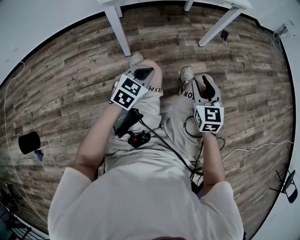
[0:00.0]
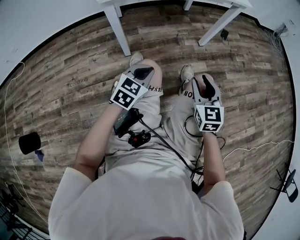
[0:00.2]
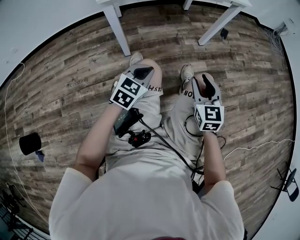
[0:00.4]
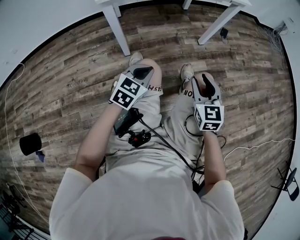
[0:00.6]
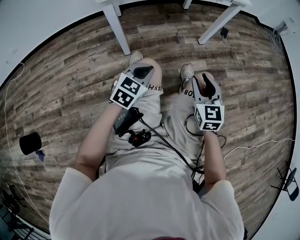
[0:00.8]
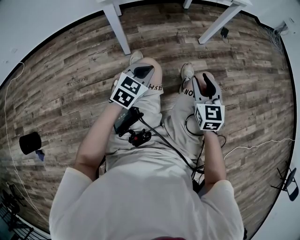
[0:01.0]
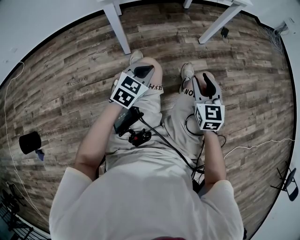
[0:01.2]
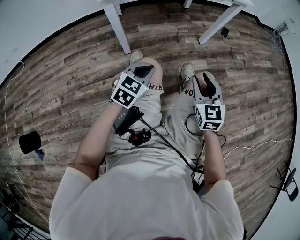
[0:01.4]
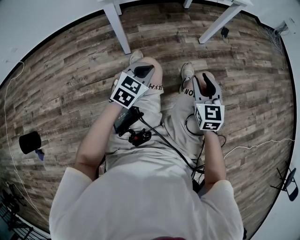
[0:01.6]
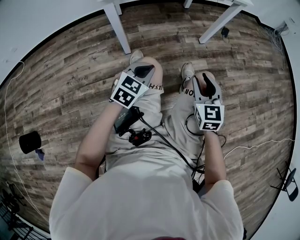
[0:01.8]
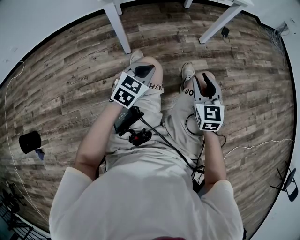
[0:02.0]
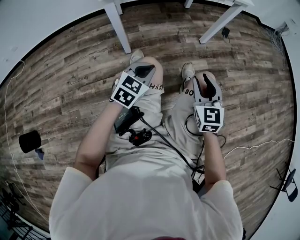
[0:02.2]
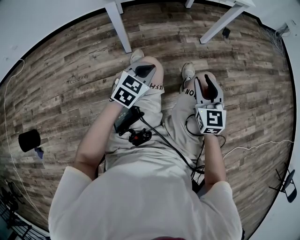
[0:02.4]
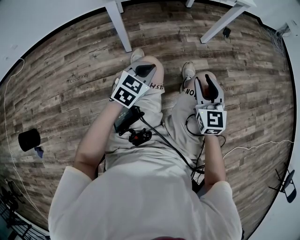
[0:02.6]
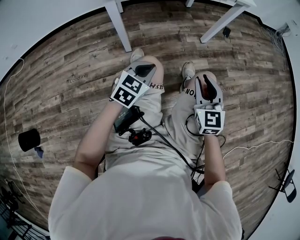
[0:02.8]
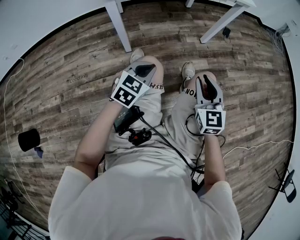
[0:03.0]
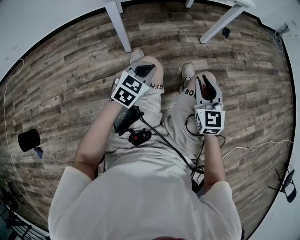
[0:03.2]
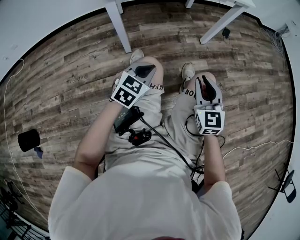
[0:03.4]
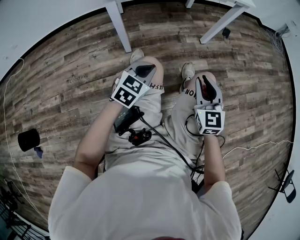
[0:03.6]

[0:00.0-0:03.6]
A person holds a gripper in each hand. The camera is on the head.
0:00.0 to 0:01.8: The two grippers keep their place.
0:01.8 to 0:03.6: The grippers move only a little.

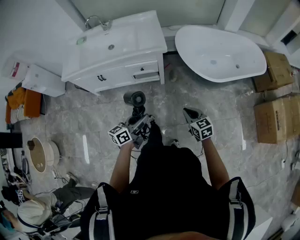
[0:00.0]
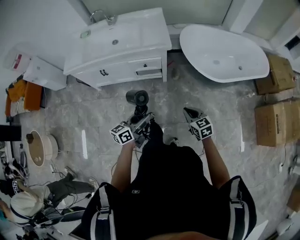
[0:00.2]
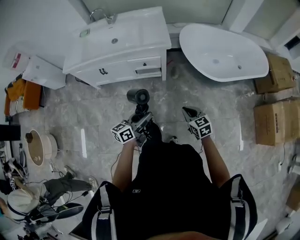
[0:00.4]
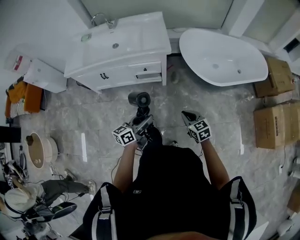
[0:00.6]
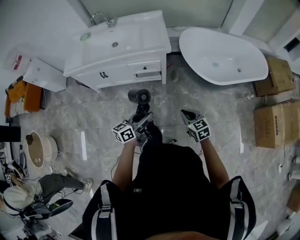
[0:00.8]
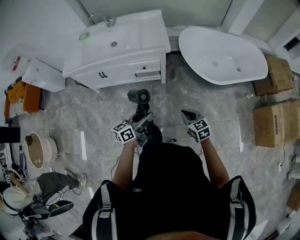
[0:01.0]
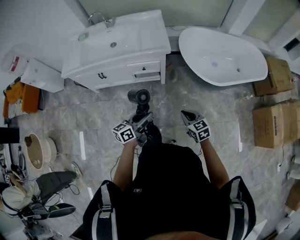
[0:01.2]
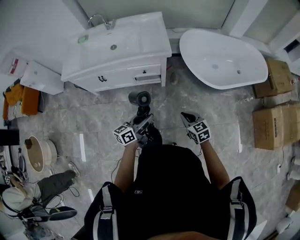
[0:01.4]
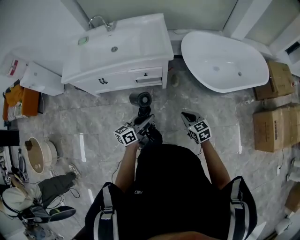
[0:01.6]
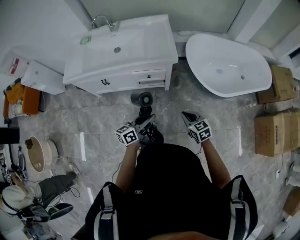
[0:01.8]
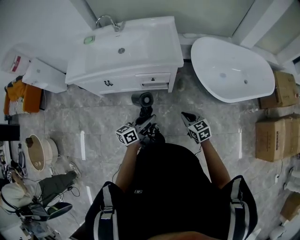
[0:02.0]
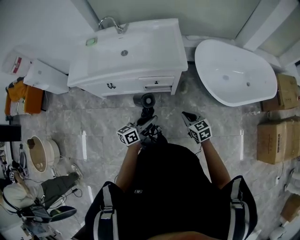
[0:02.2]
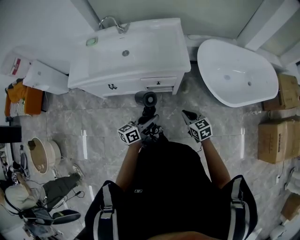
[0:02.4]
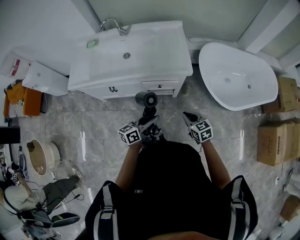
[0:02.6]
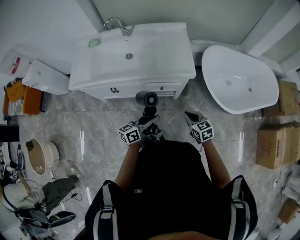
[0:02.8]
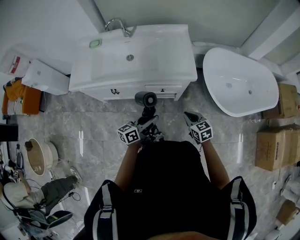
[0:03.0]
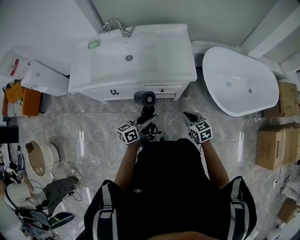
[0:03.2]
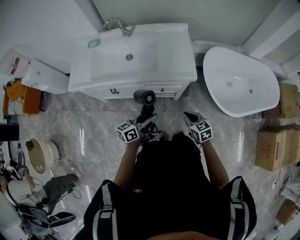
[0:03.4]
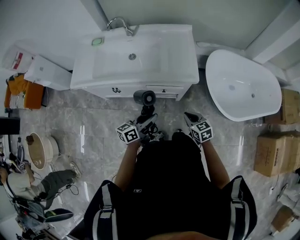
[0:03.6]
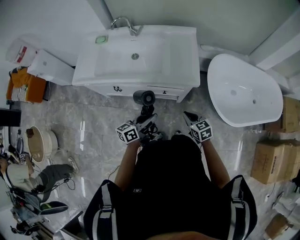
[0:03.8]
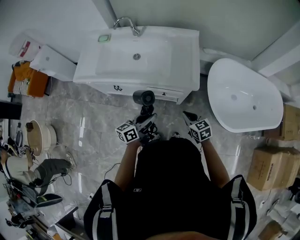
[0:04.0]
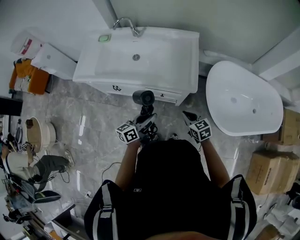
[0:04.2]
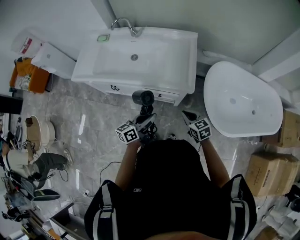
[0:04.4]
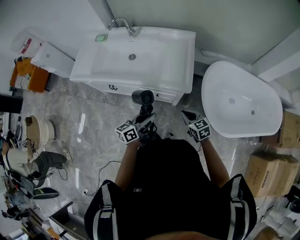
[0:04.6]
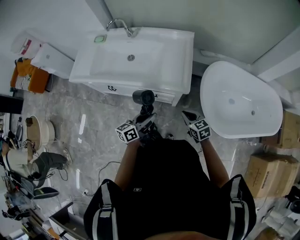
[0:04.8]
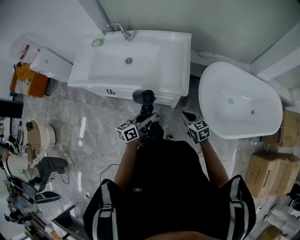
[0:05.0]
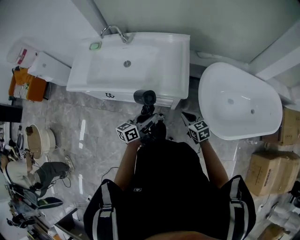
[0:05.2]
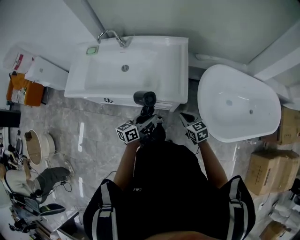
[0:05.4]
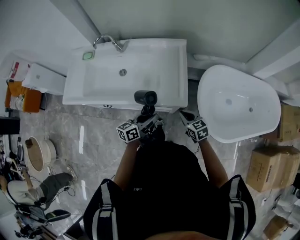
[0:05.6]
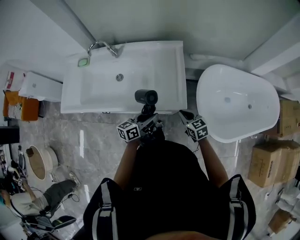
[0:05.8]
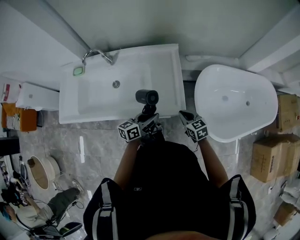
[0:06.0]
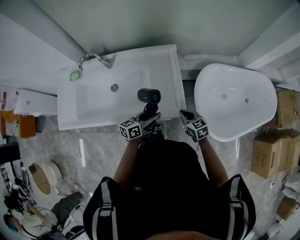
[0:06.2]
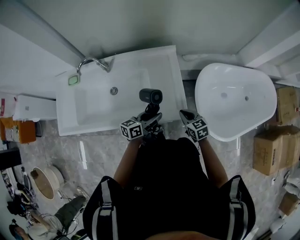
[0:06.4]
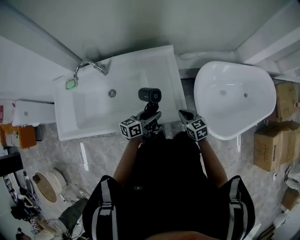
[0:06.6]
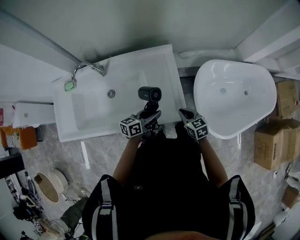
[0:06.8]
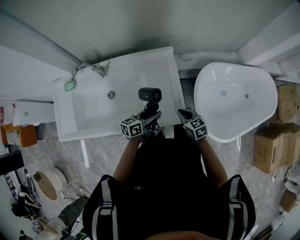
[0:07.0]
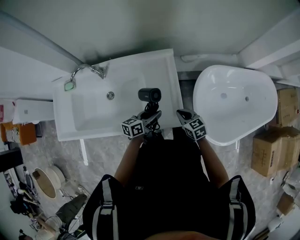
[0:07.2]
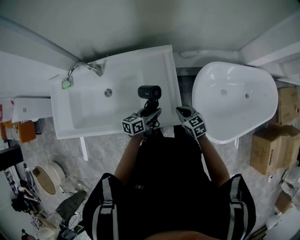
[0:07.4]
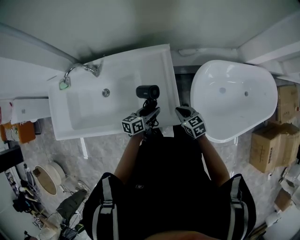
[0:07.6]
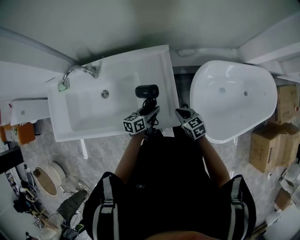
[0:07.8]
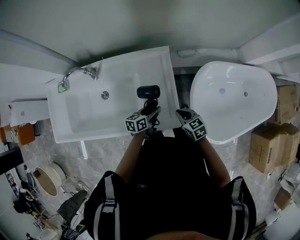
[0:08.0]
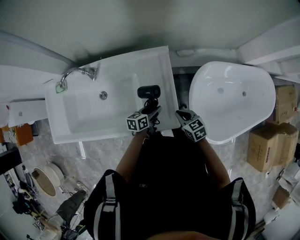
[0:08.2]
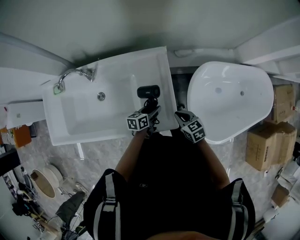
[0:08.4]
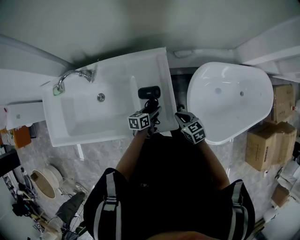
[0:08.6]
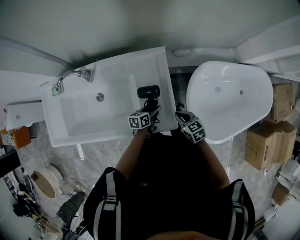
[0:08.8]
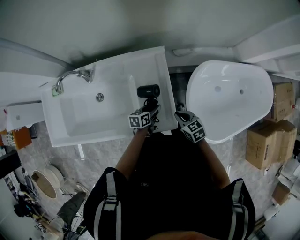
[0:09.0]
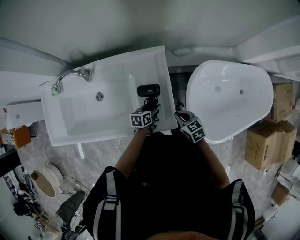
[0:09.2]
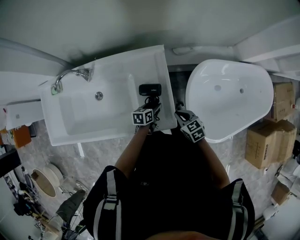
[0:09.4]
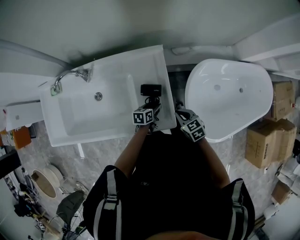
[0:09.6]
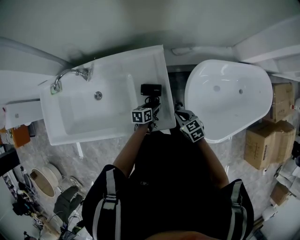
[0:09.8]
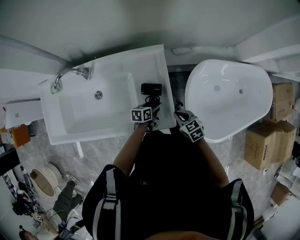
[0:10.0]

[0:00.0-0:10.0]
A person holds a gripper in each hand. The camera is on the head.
0:00.0 to 0:01.4: The grippers make only small movements.
0:01.4 to 0:02.8: The grippers both shift forward and to the left by some 20 cm.
0:02.8 to 0:04.2: The grippers both shift forward by approximately 10 cm.
0:04.2 to 0:05.8: The right gripper goes roughly 15 cm forward, while the left gripper is displaced forward and to the right by approximately 15 cm.
0:05.8 to 0:07.2: Both grippers travel together forward, roughly 10 cm.
0:07.2 to 0:08.6: The left gripper shifts approximately 10 cm downward.
0:08.6 to 0:10.0: The grippers move only a little.

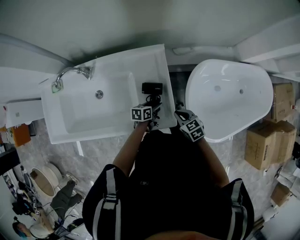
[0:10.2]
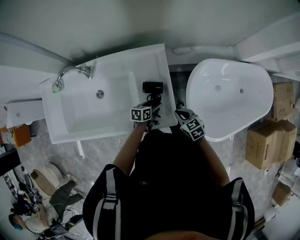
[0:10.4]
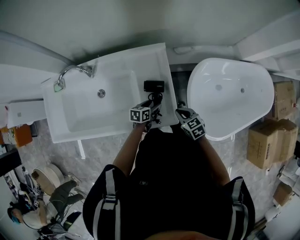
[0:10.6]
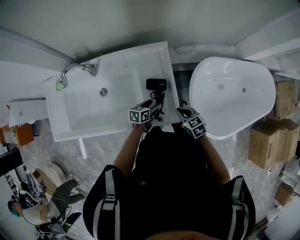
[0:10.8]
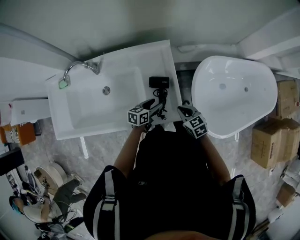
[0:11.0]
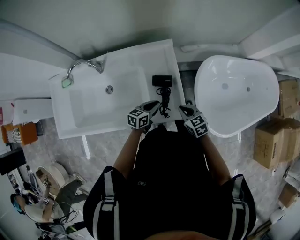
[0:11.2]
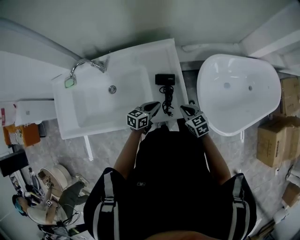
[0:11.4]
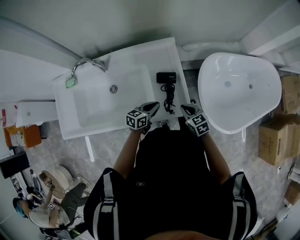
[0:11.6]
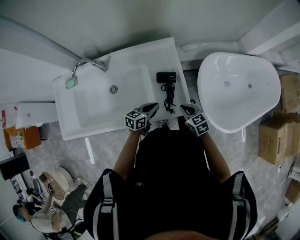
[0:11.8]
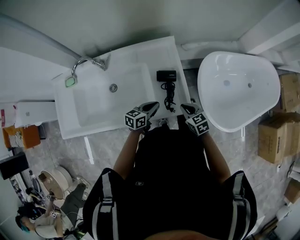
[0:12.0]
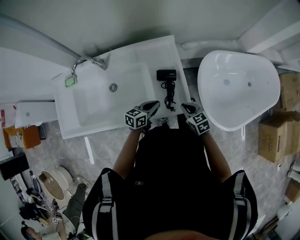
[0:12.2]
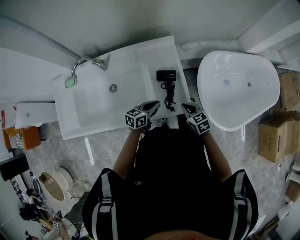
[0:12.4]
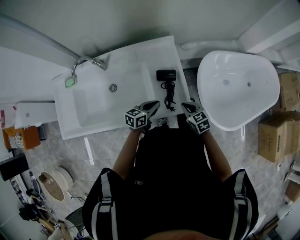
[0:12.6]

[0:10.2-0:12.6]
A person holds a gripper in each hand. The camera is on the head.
0:10.2 to 0:11.4: The left gripper is displaced upward, to the left and backward by some 10 cm, swivels approximately 20 degrees, and closes its fingers. Meanwhile the right gripper ends up some 5 cm from where it was.
0:11.4 to 0:12.6: The grippers make only small movements.

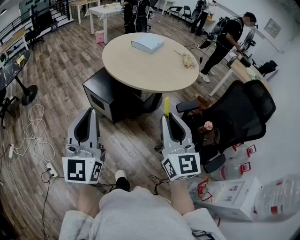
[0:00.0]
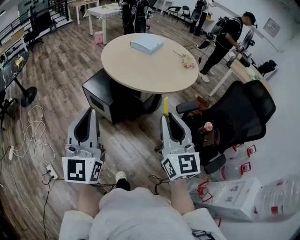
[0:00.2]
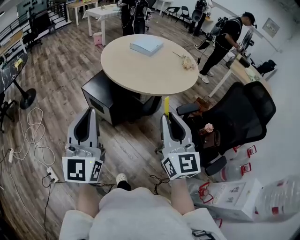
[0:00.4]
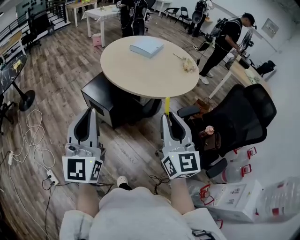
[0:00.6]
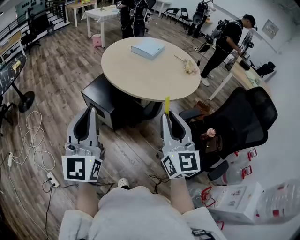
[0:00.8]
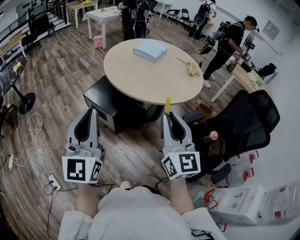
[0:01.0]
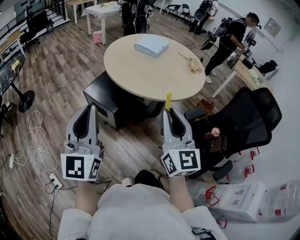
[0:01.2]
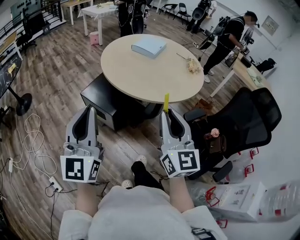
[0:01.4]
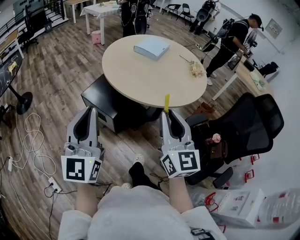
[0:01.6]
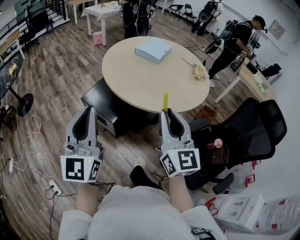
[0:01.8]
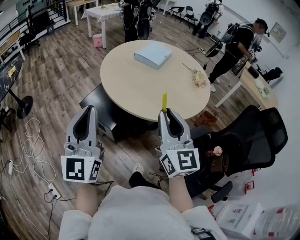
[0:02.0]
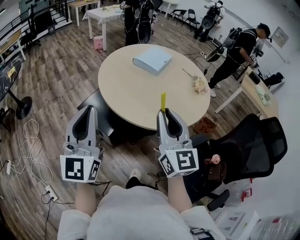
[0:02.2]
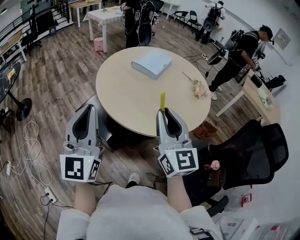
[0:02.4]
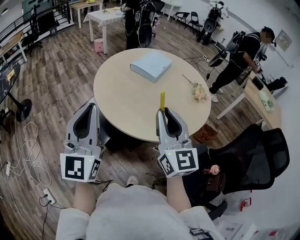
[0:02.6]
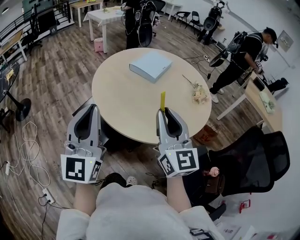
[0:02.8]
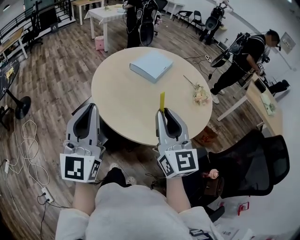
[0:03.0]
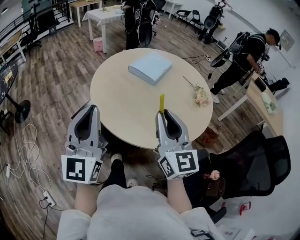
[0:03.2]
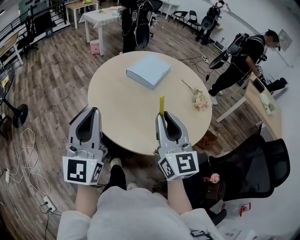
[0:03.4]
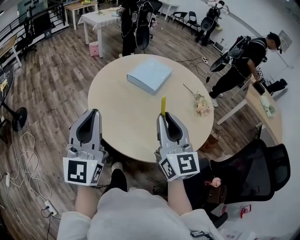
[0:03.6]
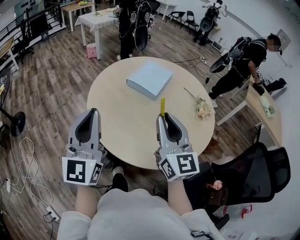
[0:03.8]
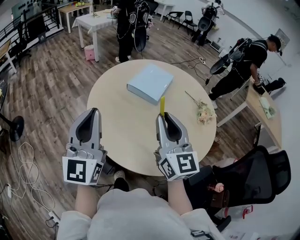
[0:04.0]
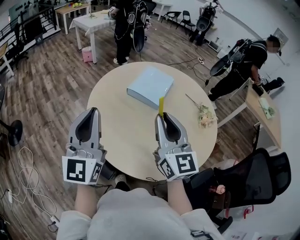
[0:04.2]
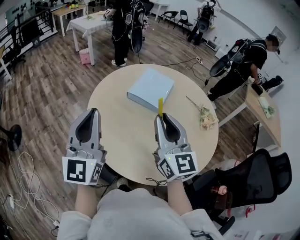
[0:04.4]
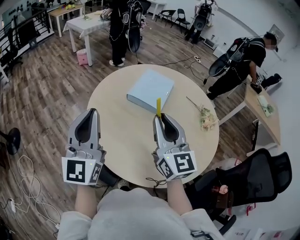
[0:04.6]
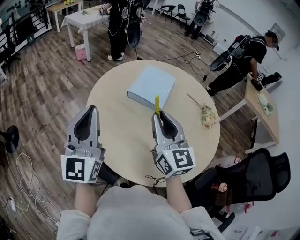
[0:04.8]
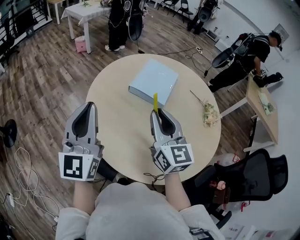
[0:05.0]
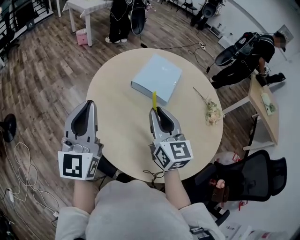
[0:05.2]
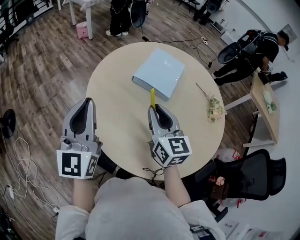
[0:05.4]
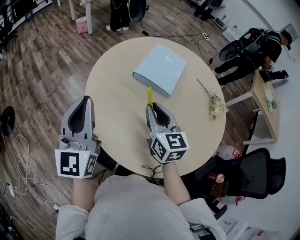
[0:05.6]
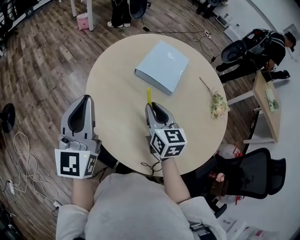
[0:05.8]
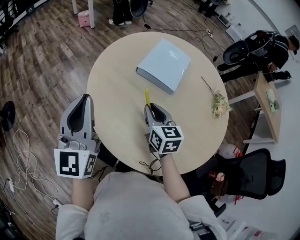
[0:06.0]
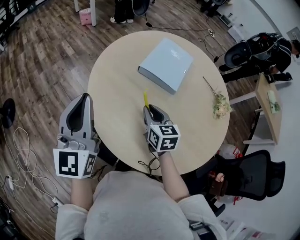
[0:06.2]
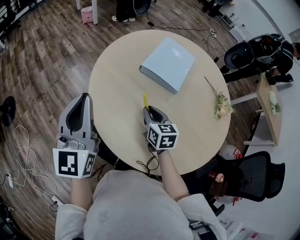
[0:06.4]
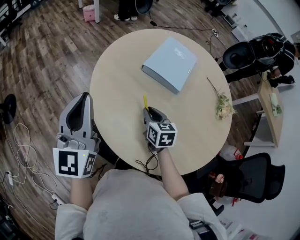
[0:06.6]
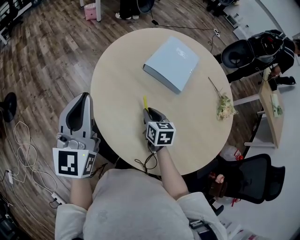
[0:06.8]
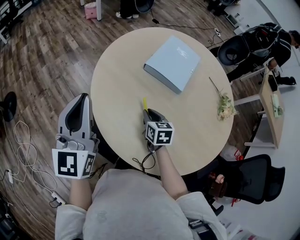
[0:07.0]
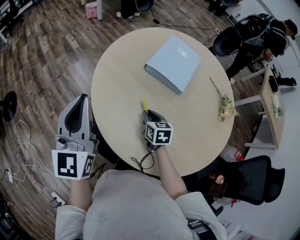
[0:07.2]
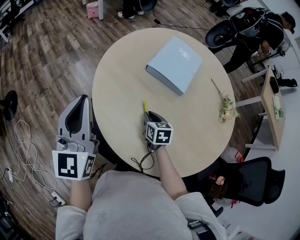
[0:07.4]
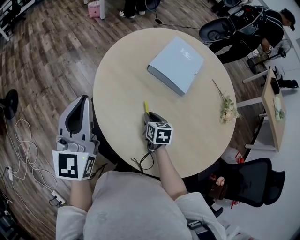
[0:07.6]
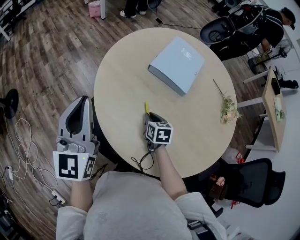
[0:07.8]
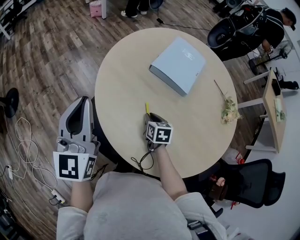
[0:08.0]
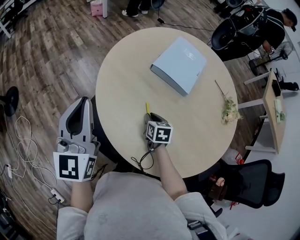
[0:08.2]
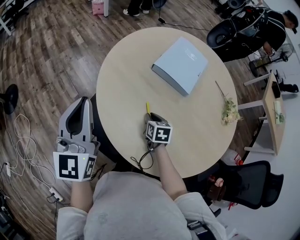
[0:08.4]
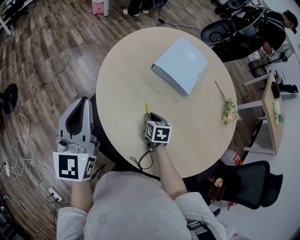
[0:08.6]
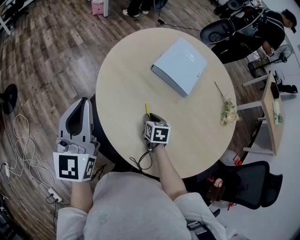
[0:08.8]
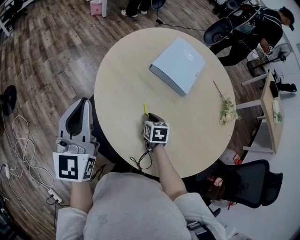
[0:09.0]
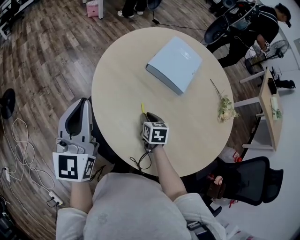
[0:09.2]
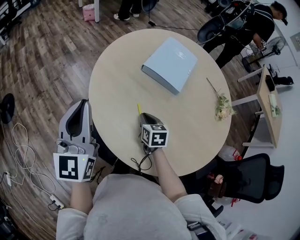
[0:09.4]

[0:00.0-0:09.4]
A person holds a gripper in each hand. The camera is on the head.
0:00.0 to 0:01.6: The grippers both shift forward by some 20 cm.
0:01.6 to 0:03.2: The left gripper moves forward and to the right, approximately 30 cm, while the right gripper is displaced forward by about 30 cm.
0:03.2 to 0:04.8: Both grippers move forward, roughly 30 cm.
0:04.8 to 0:06.2: The left gripper shifts about 10 cm downward, to the left and forward; the right gripper shifts about 20 cm downward, and points its fingers roughly 30 degrees further downward.
0:06.2 to 0:07.8: The right gripper moves downward, some 15 cm, and changes its angle by about 20 degrees.
0:07.8 to 0:09.4: The grippers stay close to where they were, moving slightly.
